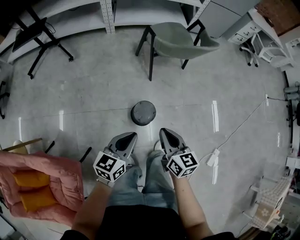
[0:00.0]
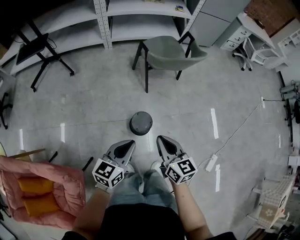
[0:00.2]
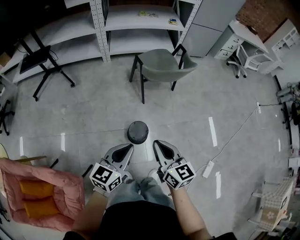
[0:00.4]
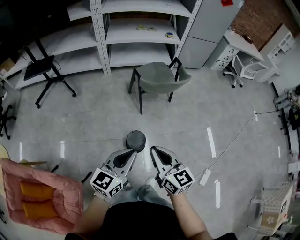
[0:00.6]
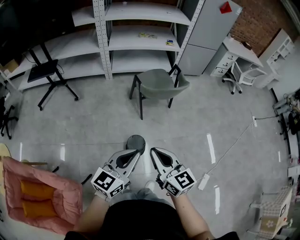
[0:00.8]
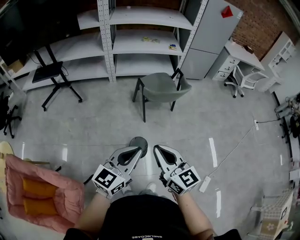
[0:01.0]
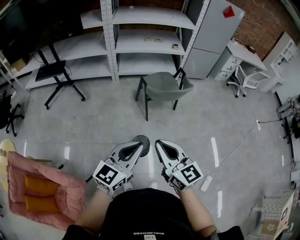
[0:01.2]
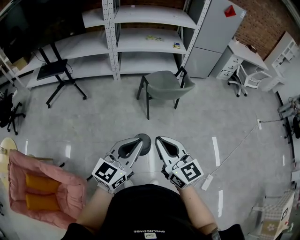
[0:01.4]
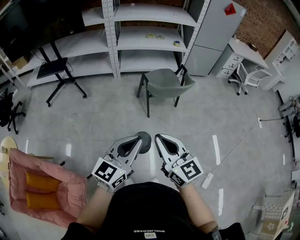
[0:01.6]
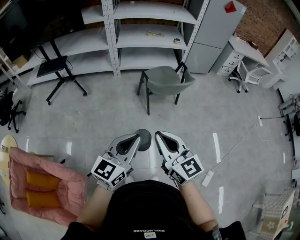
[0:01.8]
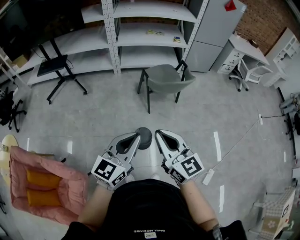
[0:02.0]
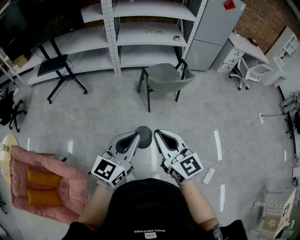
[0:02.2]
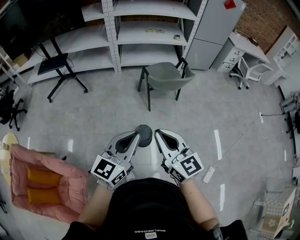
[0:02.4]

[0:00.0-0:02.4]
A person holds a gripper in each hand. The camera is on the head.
0:00.0 to 0:01.2: Both grippers travel together upward, roughly 30 cm. The right gripper turns by some 30 degrees. The left gripper swivels approximately 30 degrees.
0:01.2 to 0:02.4: The grippers move only a little.

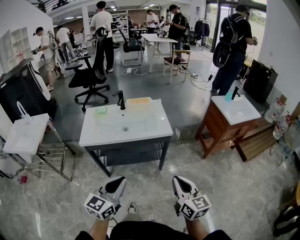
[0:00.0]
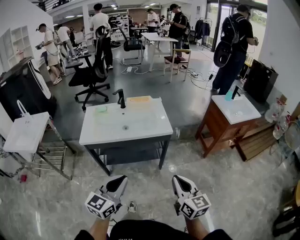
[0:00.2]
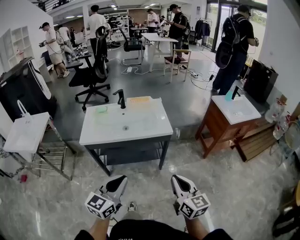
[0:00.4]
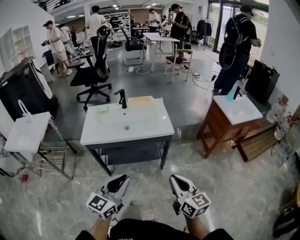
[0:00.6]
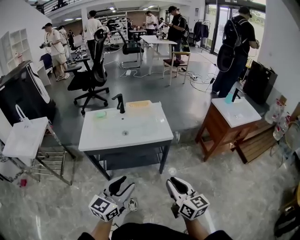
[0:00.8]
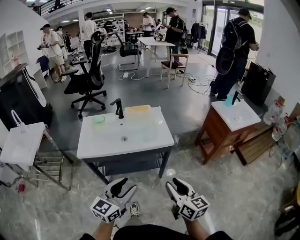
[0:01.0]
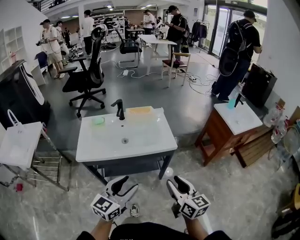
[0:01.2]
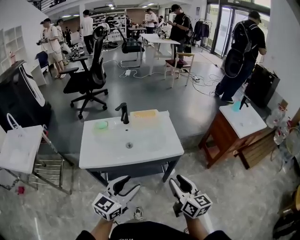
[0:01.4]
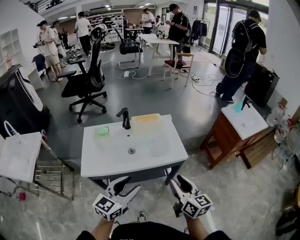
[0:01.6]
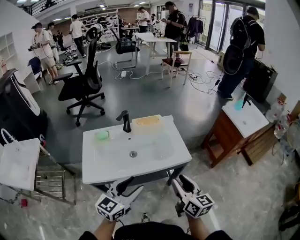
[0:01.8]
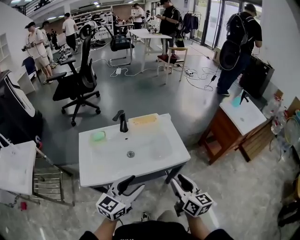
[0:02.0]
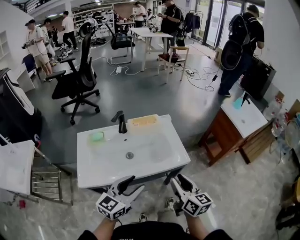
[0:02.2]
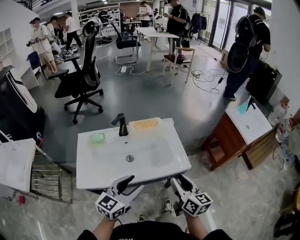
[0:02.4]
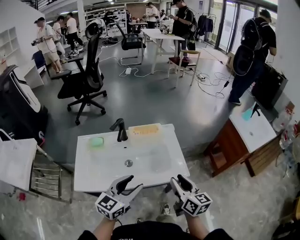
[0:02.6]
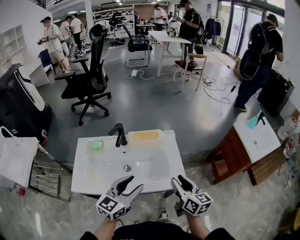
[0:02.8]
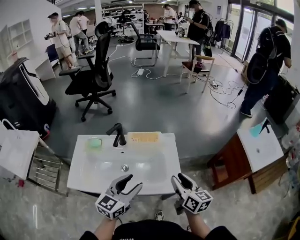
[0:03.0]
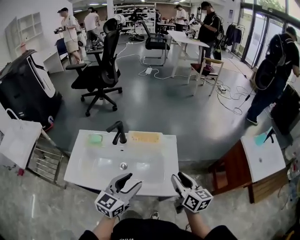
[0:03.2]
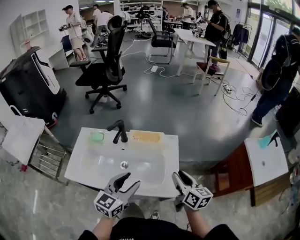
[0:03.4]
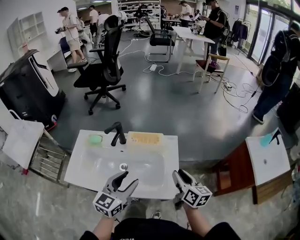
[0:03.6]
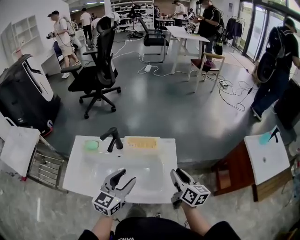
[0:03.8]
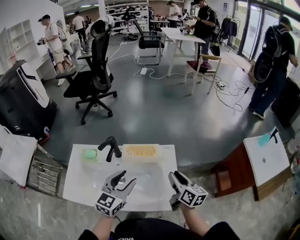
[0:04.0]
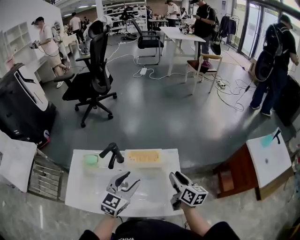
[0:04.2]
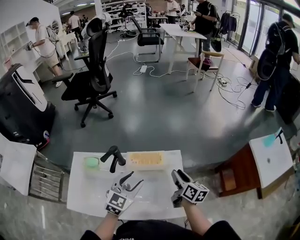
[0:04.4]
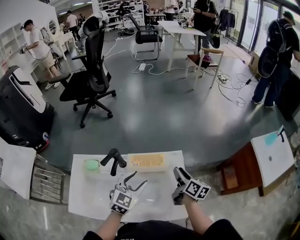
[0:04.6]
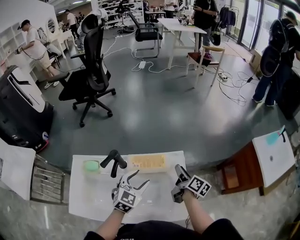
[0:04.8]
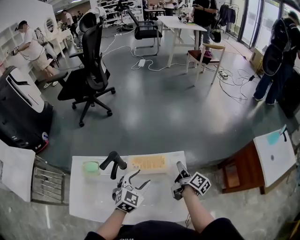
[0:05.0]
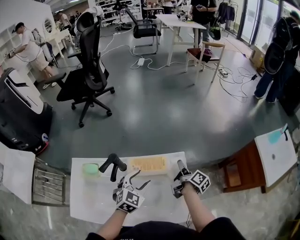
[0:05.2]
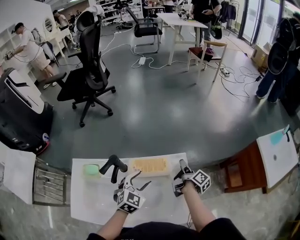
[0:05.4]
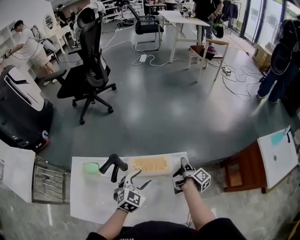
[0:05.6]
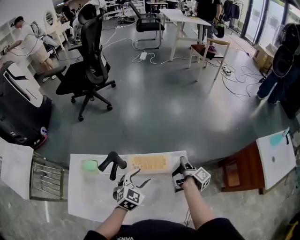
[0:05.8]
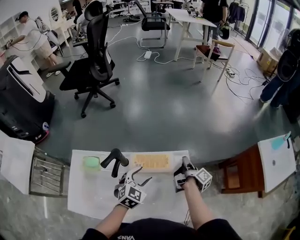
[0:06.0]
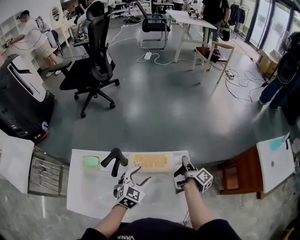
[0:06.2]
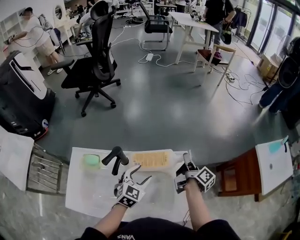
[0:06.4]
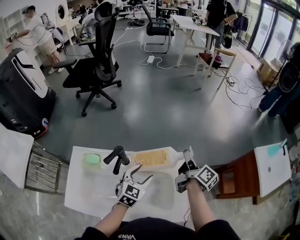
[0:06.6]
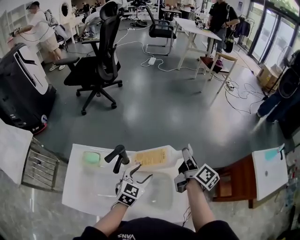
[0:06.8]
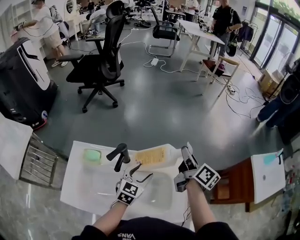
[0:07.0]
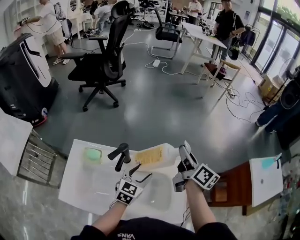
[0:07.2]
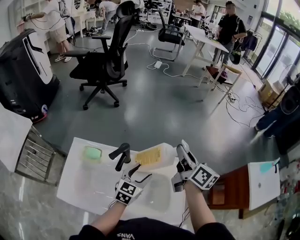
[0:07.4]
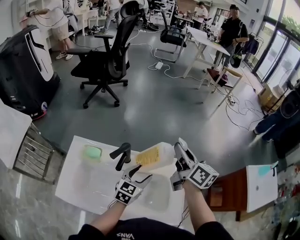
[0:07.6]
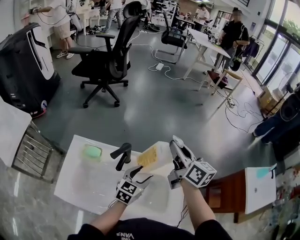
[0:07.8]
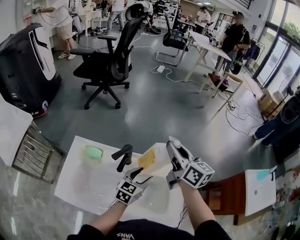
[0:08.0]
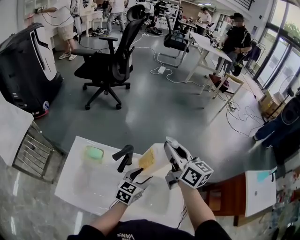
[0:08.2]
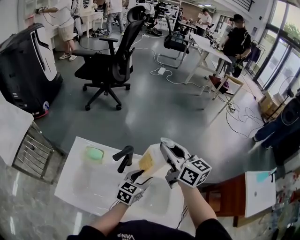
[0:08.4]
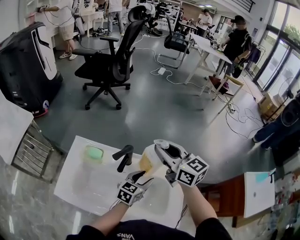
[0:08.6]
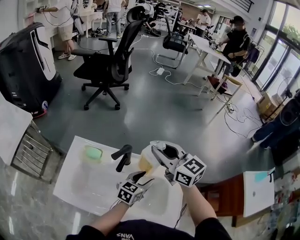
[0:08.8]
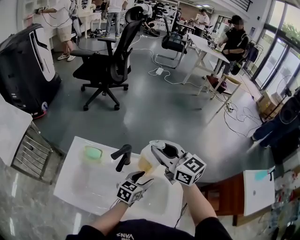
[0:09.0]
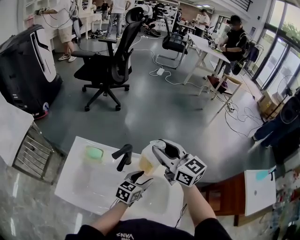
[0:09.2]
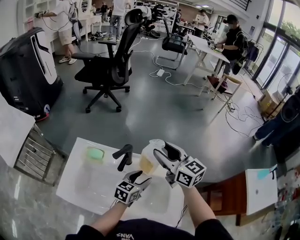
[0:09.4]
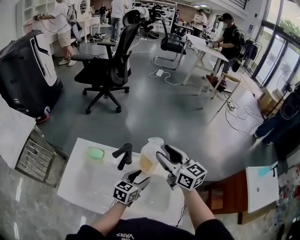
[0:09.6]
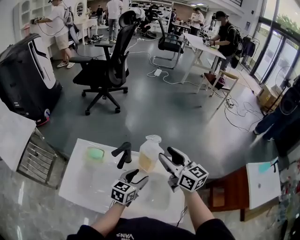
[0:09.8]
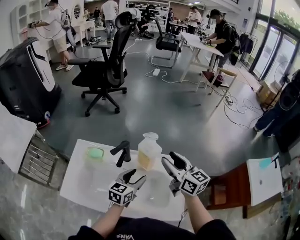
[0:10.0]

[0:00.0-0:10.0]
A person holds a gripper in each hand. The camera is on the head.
0:00.0 to 0:01.4: The left gripper travels forward by roughly 15 cm, and opens; the right gripper is displaced forward and to the left by roughly 20 cm, and opens its fingers.
0:01.4 to 0:02.8: The grippers both shift forward by about 25 cm.
0:02.8 to 0:04.2: Both grippers travel together forward, about 20 cm.
0:04.2 to 0:05.8: The left gripper goes approximately 15 cm downward and forward, and swivels approximately 20 degrees; the right gripper heads forward and downward, covering roughly 15 cm, and rolls clockwise, seen from behind, by about 60 degrees.
0:05.8 to 0:07.2: The right gripper goes about 25 cm upward and to the left, and twists about 50 degrees counterclockwise, seen from behind; the left gripper changes its angle by some 20 degrees.
0:07.2 to 0:08.6: The right gripper goes approximately 15 cm to the left, and rotates about 50 degrees.
0:08.6 to 0:10.0: The left gripper moves roughly 5 cm, while the right gripper heads to the right and backward, covering approximately 10 cm, and opens its fingers.

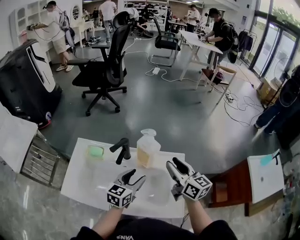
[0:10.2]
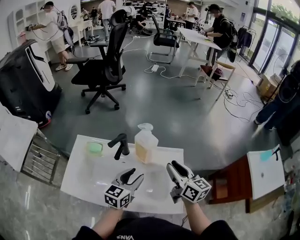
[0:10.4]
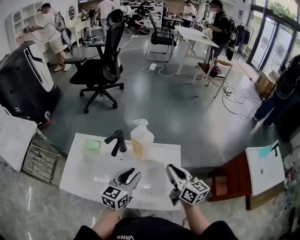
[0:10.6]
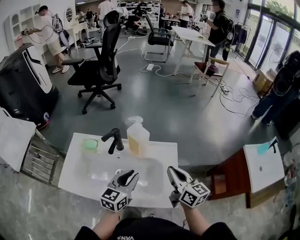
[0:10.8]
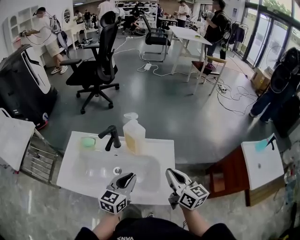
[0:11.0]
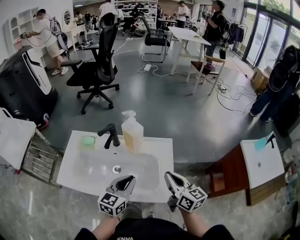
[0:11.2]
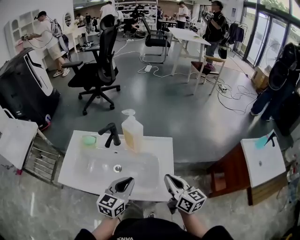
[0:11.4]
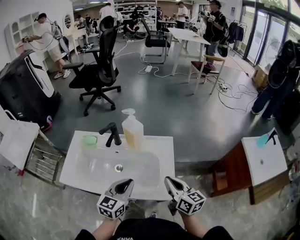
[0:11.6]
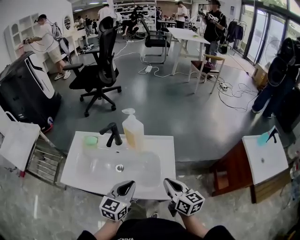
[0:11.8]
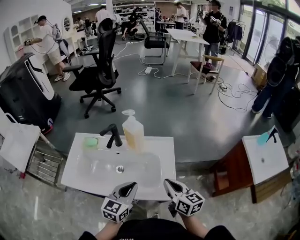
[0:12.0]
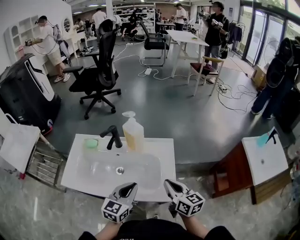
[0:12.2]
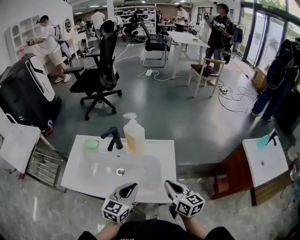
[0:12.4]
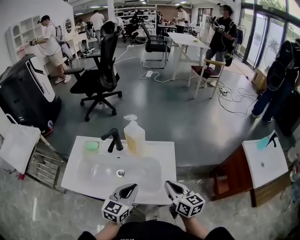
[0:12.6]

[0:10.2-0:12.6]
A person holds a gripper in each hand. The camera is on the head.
0:10.2 to 0:11.4: The left gripper heads backward, covering about 15 cm, and closes up. The right gripper shifts about 15 cm backward and to the right, and closes its fingers.
0:11.4 to 0:12.6: The grippers make only small movements.

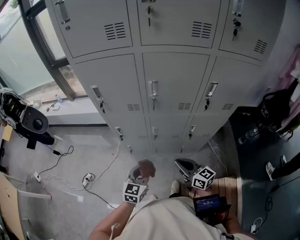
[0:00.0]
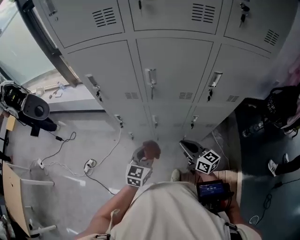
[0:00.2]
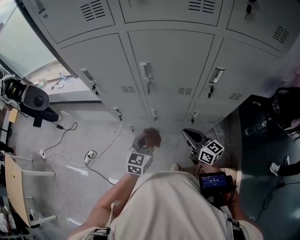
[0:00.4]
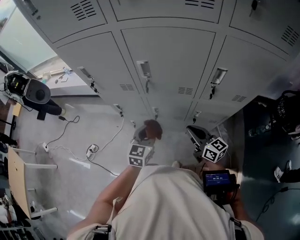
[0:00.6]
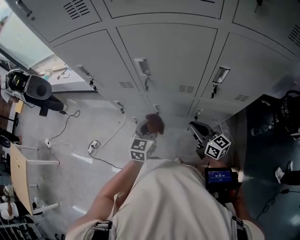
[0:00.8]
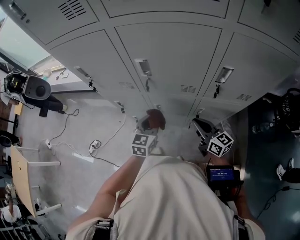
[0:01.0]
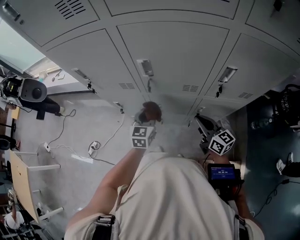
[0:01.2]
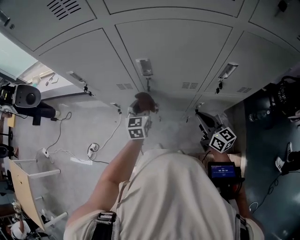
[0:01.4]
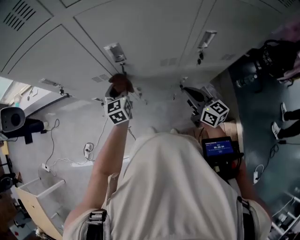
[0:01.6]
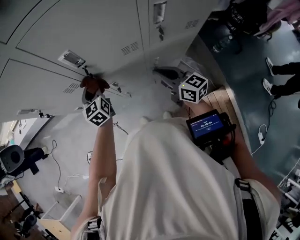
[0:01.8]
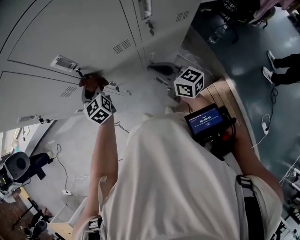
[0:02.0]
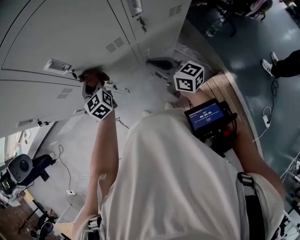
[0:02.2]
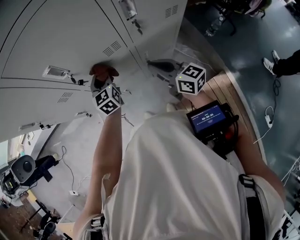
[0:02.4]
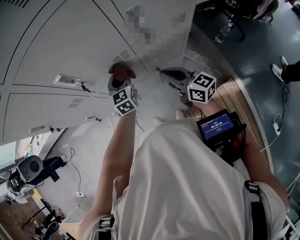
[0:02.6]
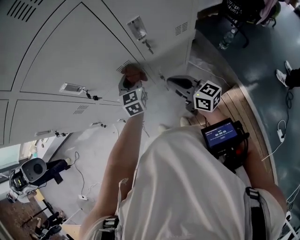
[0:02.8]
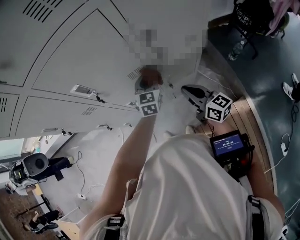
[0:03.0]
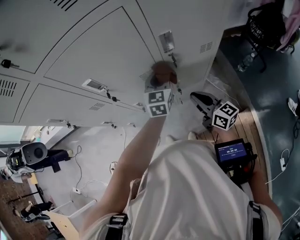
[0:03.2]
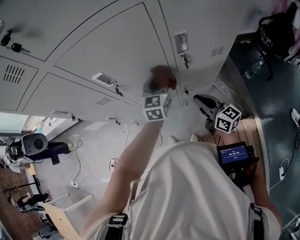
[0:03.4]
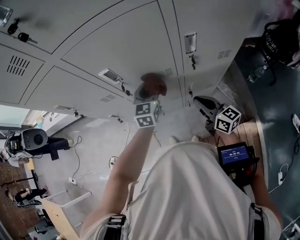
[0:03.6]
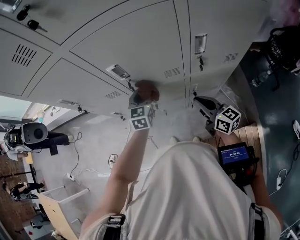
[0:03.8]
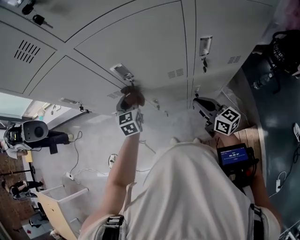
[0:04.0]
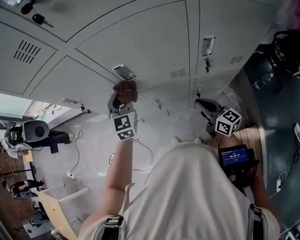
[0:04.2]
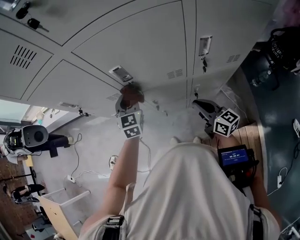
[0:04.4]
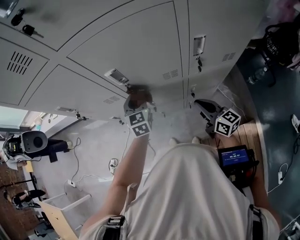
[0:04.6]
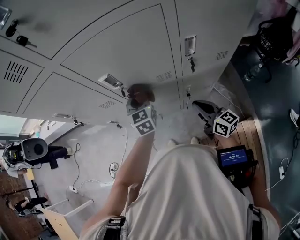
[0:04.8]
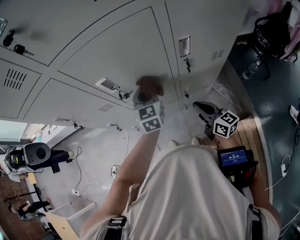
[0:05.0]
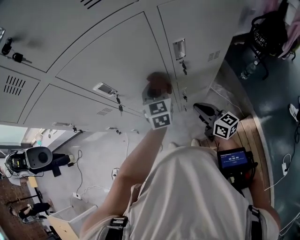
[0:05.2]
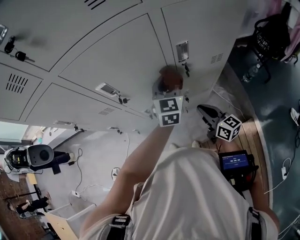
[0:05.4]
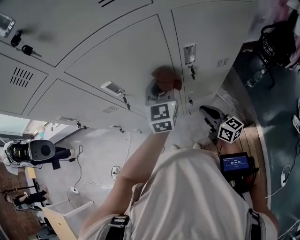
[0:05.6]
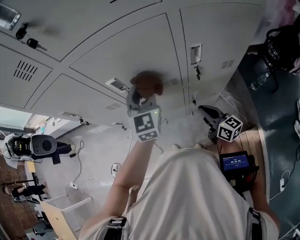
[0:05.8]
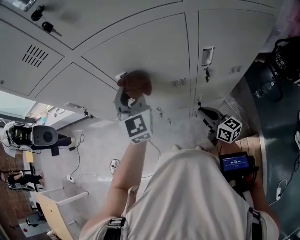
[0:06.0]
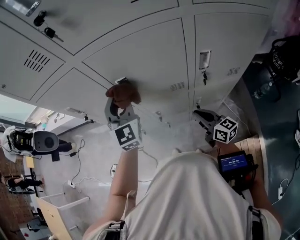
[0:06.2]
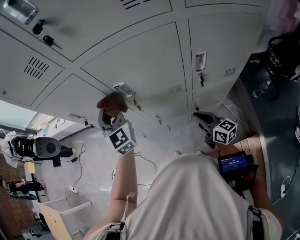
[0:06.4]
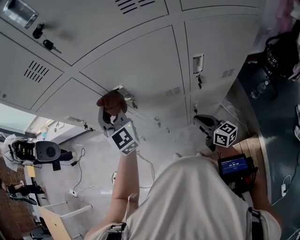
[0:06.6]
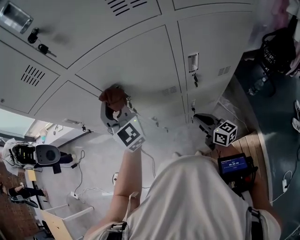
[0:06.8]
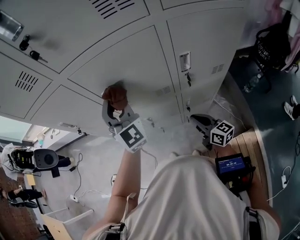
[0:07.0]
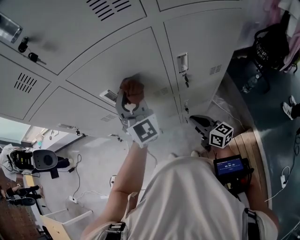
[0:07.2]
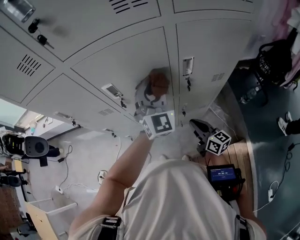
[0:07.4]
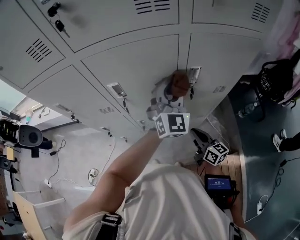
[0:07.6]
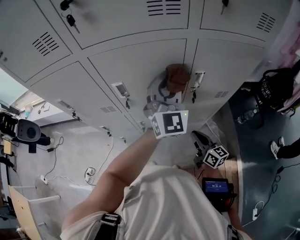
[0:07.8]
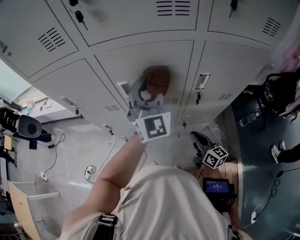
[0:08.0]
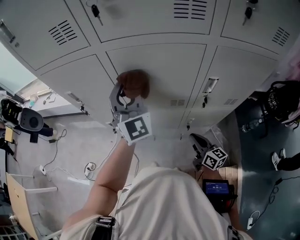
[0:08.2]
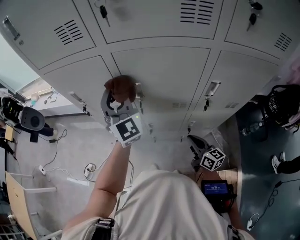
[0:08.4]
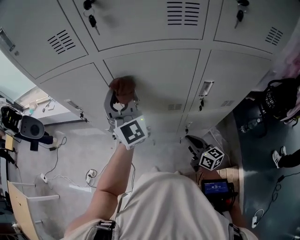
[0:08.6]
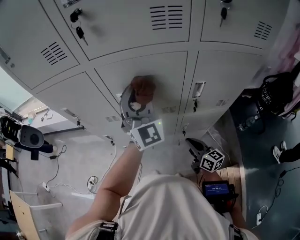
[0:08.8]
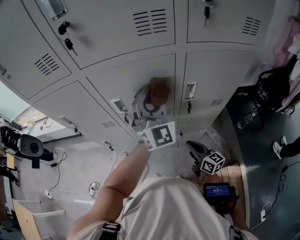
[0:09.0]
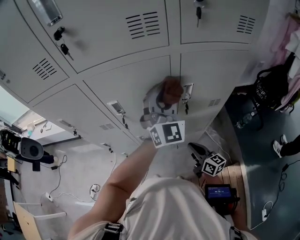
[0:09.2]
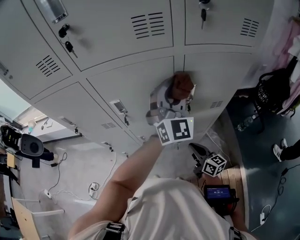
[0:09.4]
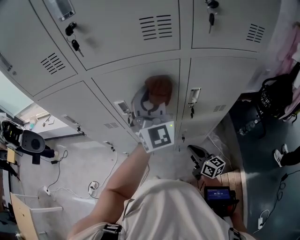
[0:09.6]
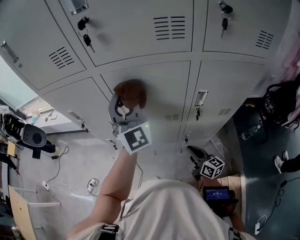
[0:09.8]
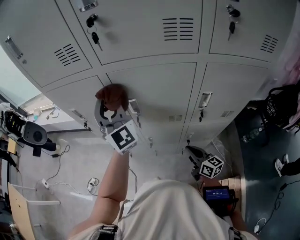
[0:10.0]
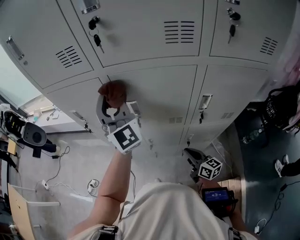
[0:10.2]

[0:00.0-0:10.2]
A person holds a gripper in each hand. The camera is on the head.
0:00.0 to 0:01.4: The left gripper is displaced forward by approximately 25 cm; the right gripper travels forward and to the right by approximately 20 cm.
0:01.4 to 0:03.0: The right gripper goes some 10 cm to the right. The left gripper goes approximately 25 cm to the right, and rotates roughly 30 degrees.
0:03.0 to 0:04.4: The right gripper is displaced to the left by some 10 cm. The left gripper travels to the left by roughly 25 cm, and rotates roughly 20 degrees.
0:04.4 to 0:05.8: The left gripper heads upward and to the right, covering some 15 cm.
0:05.8 to 0:07.2: The left gripper heads upward, covering some 5 cm, goes to the left and returns, roughly 15 cm each way, and swivels approximately 20 degrees.
0:07.2 to 0:08.8: The left gripper swings left and right, about 25 cm each way, with 2 reversals.
0:08.8 to 0:10.2: The left gripper heads to the left, covering about 10 cm.
